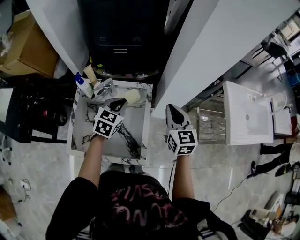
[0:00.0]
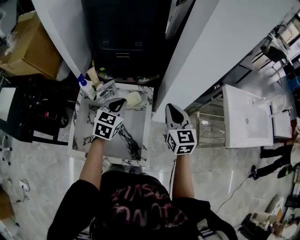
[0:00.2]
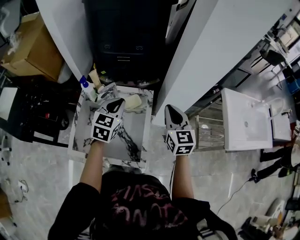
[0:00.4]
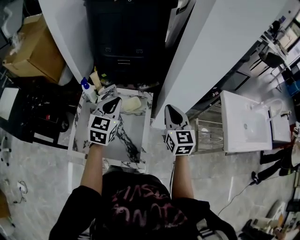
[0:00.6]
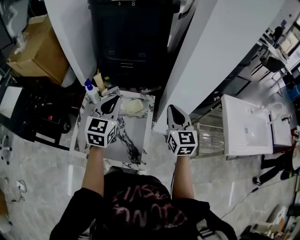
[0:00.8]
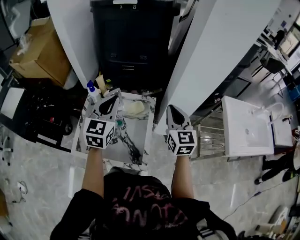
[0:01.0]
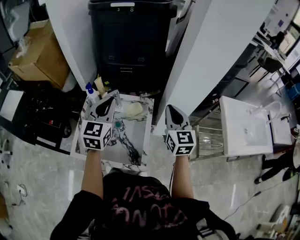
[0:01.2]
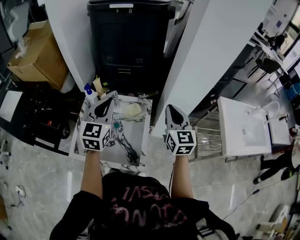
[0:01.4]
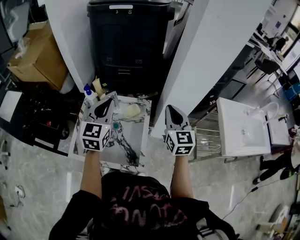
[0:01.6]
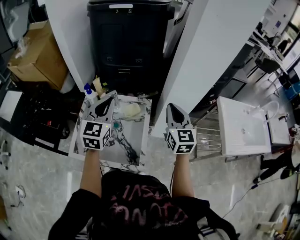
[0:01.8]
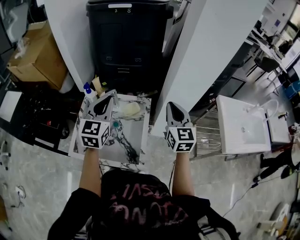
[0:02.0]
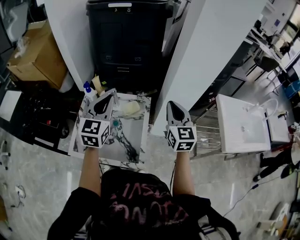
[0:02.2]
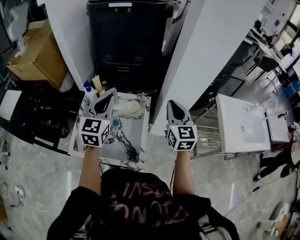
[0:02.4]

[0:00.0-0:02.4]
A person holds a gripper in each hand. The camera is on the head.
0:00.0 to 0:01.2: The left gripper travels upward by approximately 15 cm, and swivels some 30 degrees. The right gripper heads upward, covering approximately 10 cm.
0:01.2 to 0:02.4: There are only small adjustments of the grippers.

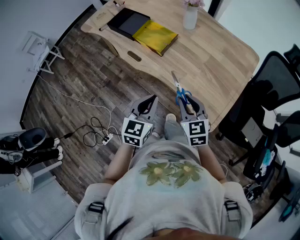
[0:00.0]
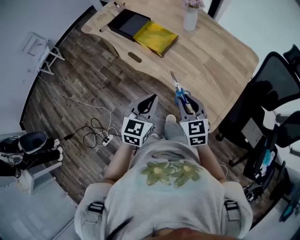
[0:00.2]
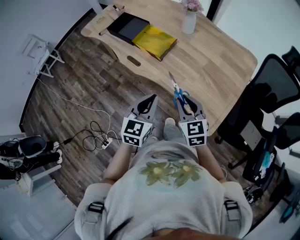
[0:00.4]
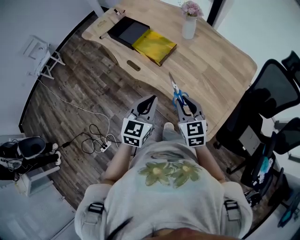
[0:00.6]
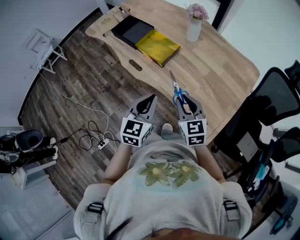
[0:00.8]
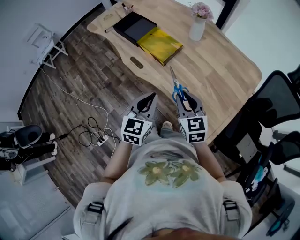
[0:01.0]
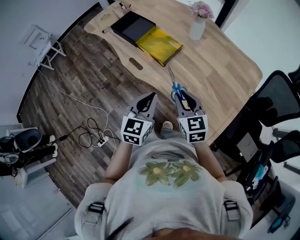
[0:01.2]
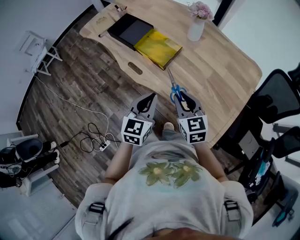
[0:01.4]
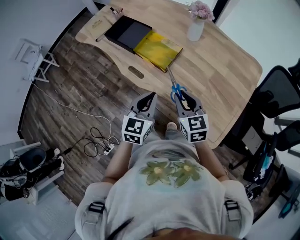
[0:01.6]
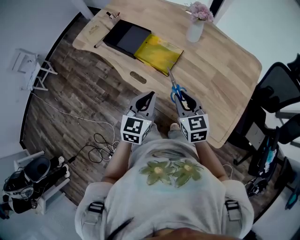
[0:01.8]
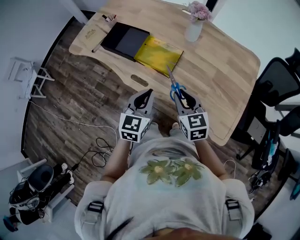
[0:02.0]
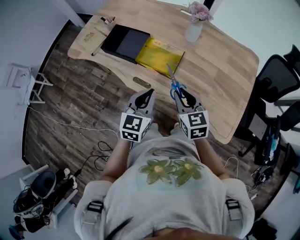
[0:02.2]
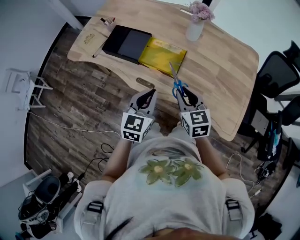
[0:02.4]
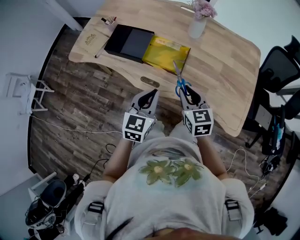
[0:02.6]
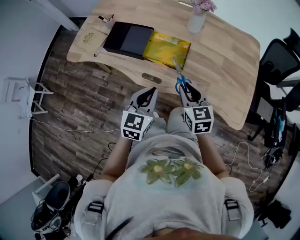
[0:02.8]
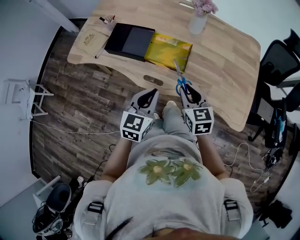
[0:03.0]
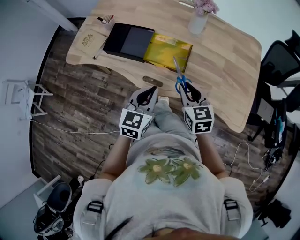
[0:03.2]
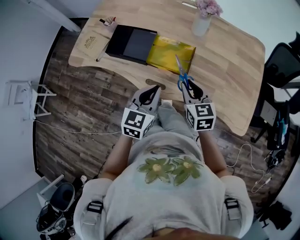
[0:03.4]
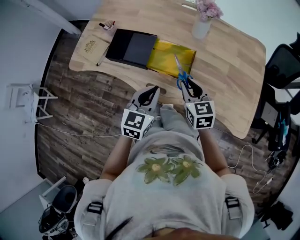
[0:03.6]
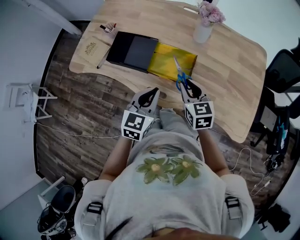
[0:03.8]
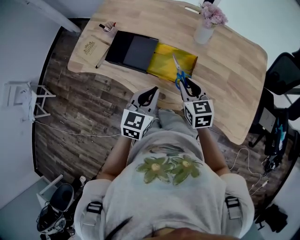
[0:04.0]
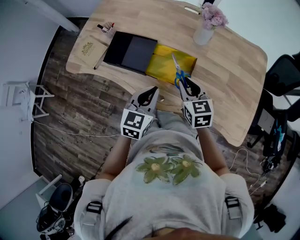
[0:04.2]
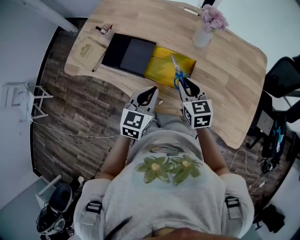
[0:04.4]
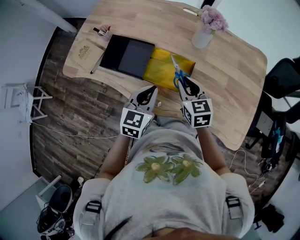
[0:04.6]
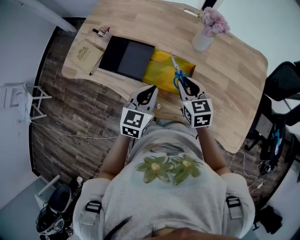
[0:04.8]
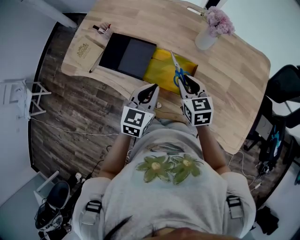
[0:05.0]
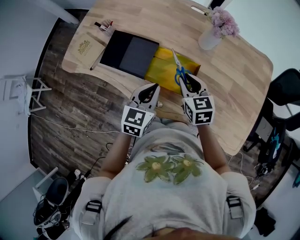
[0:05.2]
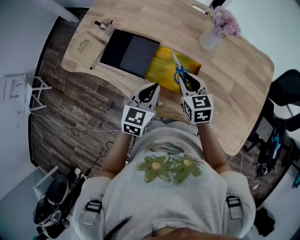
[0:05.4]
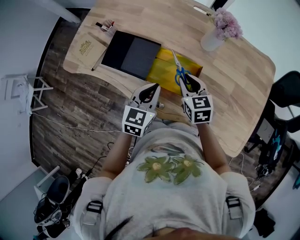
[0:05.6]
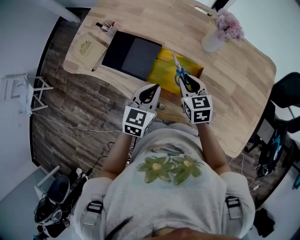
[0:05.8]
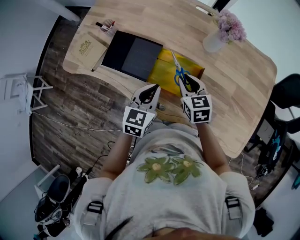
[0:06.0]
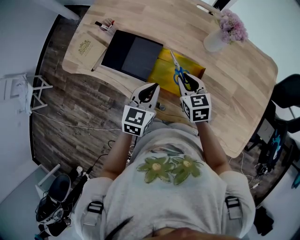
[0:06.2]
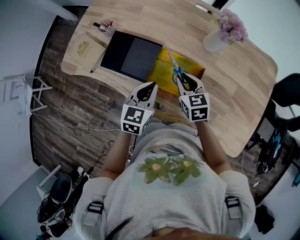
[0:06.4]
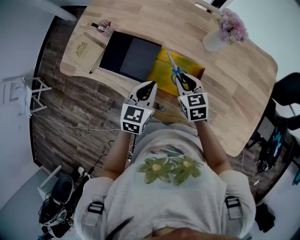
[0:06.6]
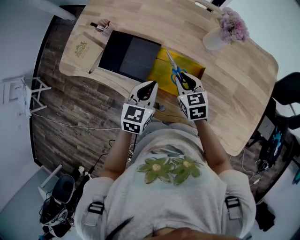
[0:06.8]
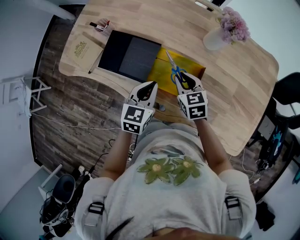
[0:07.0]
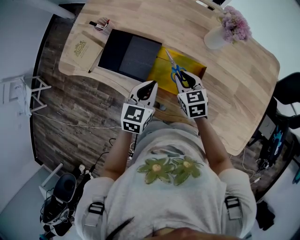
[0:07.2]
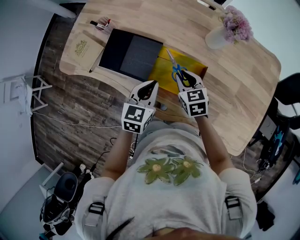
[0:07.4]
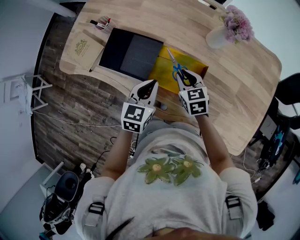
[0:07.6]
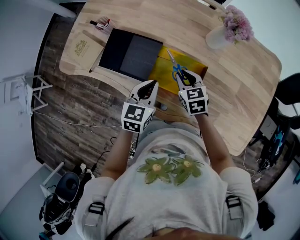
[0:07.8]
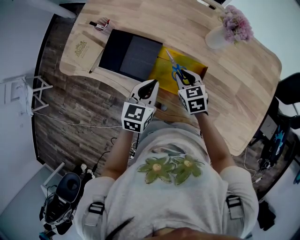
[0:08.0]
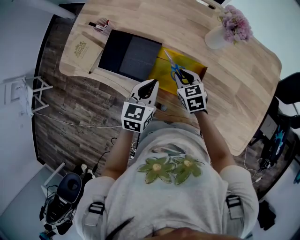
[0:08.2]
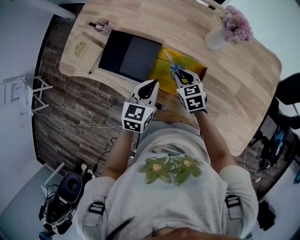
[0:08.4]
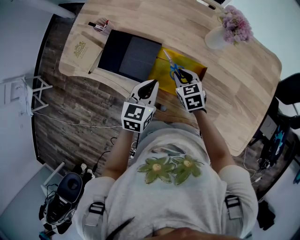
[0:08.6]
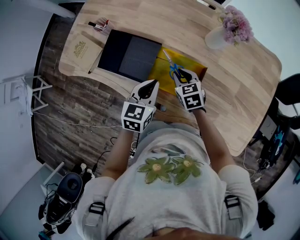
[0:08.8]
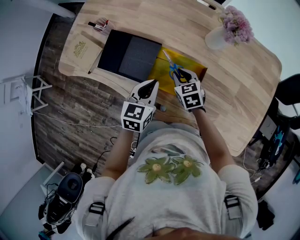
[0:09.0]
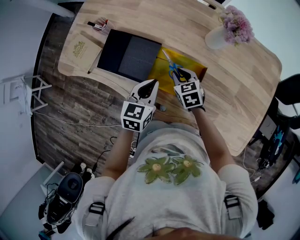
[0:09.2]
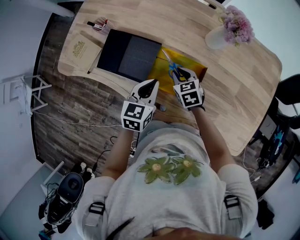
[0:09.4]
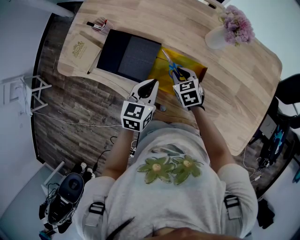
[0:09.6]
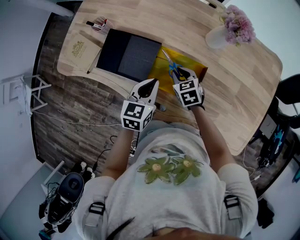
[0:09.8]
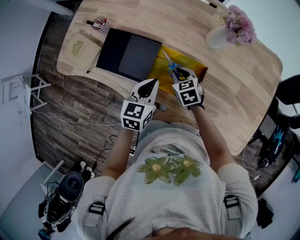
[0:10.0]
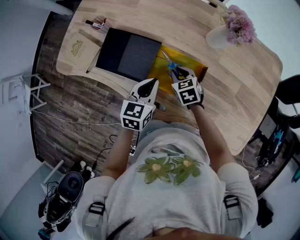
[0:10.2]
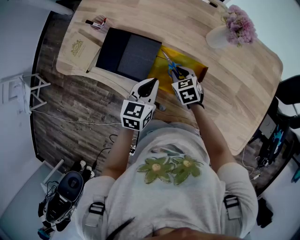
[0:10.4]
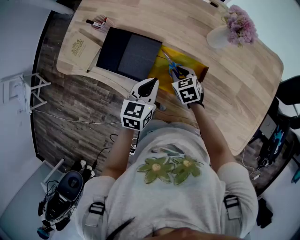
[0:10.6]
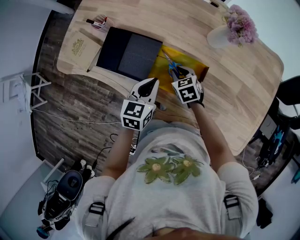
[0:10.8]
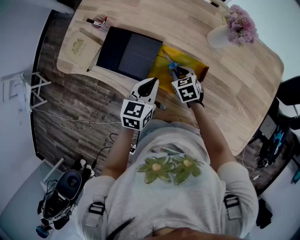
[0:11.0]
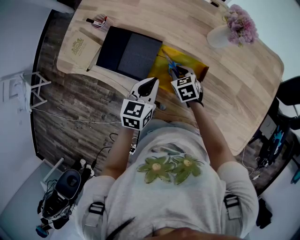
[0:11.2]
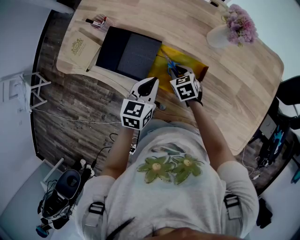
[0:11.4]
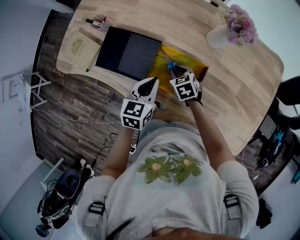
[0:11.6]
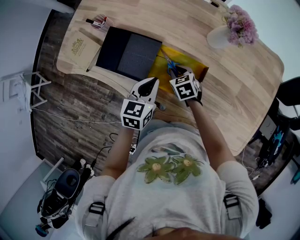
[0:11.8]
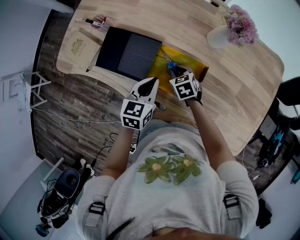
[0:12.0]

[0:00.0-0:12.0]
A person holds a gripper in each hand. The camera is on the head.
0:00.0 to 0:01.6: The right gripper moves forward and to the left, about 15 cm, while the left gripper is displaced forward by approximately 15 cm.
0:01.6 to 0:03.0: Both grippers travel together to the left, approximately 15 cm. The right gripper turns by about 20 degrees; the left gripper rotates roughly 20 degrees.
0:03.0 to 0:04.4: Both grippers travel together forward, roughly 15 cm.
0:04.4 to 0:06.0: The left gripper shifts some 5 cm forward. Meanwhile the right gripper is displaced forward and downward by approximately 10 cm.
0:06.0 to 0:07.6: The right gripper moves downward, roughly 5 cm.
0:07.6 to 0:09.0: There are only small adjustments of the grippers.
0:09.0 to 0:12.0: The grippers stay close to where they were, moving slightly.

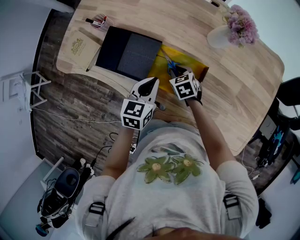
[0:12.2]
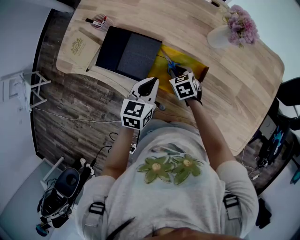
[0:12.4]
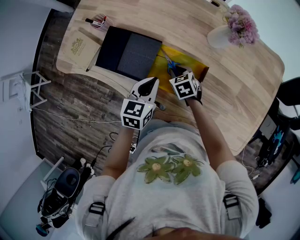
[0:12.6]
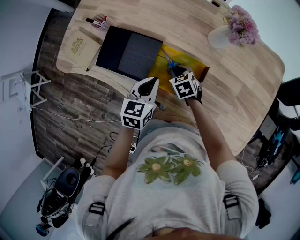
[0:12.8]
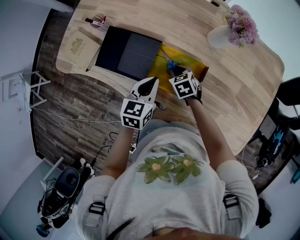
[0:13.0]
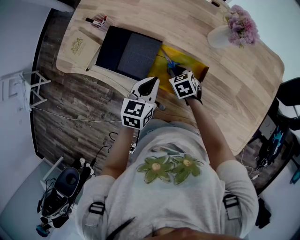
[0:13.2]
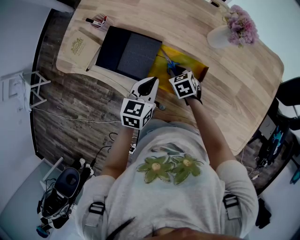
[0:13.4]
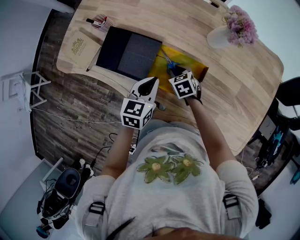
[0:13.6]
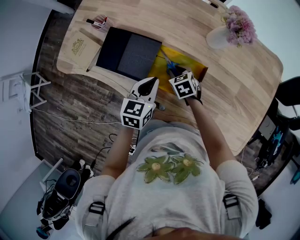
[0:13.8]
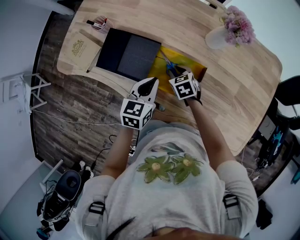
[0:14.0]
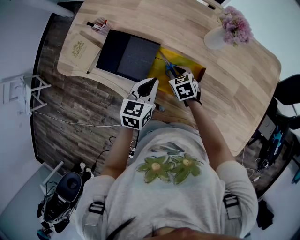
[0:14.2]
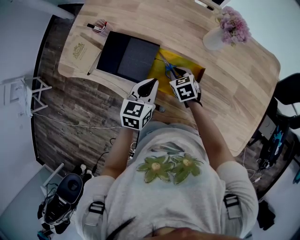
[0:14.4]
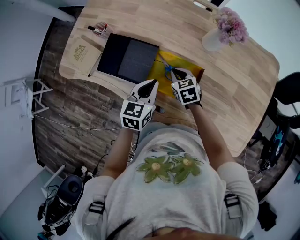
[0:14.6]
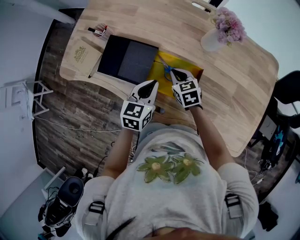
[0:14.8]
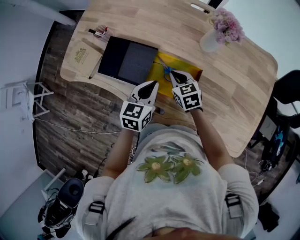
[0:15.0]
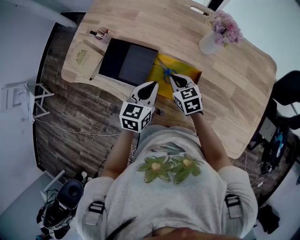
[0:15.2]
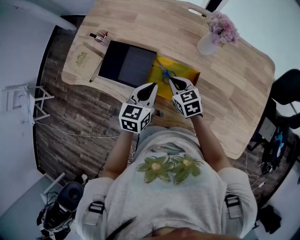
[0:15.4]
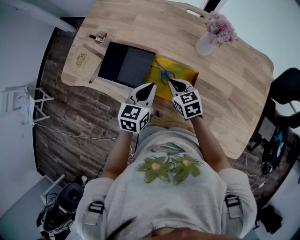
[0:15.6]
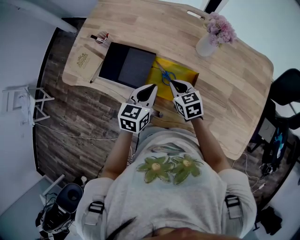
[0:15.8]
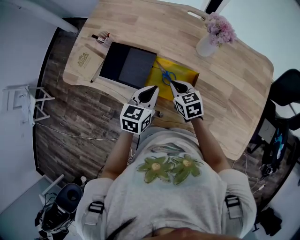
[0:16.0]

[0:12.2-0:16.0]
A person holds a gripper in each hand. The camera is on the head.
0:12.2 to 0:13.4: Neither gripper changes place.
0:13.4 to 0:14.8: The right gripper travels upward by approximately 10 cm.
0:14.8 to 0:16.0: The right gripper changes place by about 5 cm.

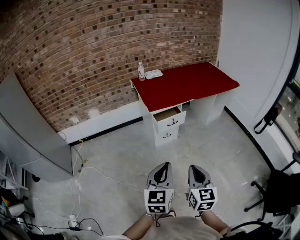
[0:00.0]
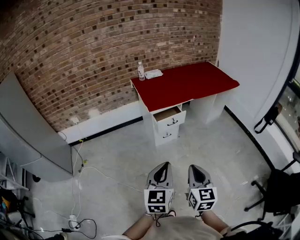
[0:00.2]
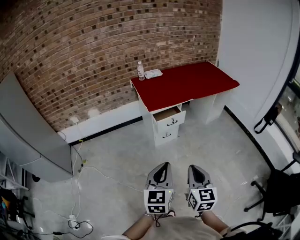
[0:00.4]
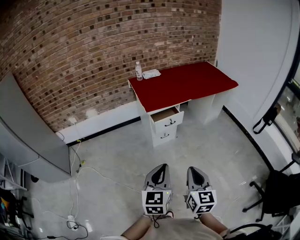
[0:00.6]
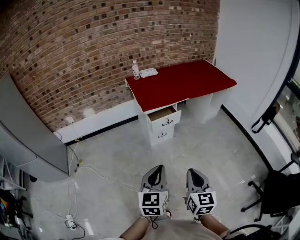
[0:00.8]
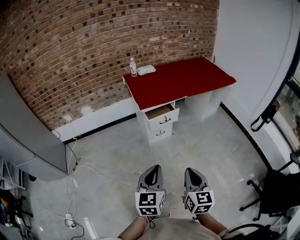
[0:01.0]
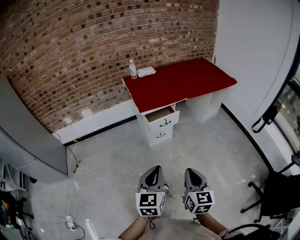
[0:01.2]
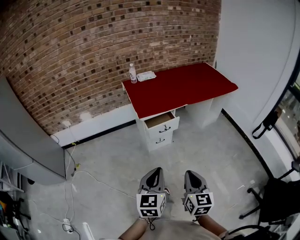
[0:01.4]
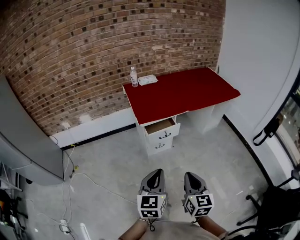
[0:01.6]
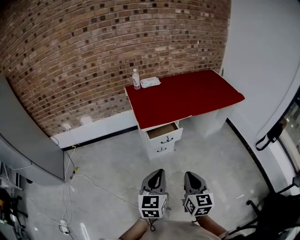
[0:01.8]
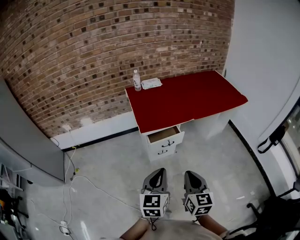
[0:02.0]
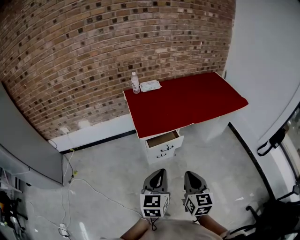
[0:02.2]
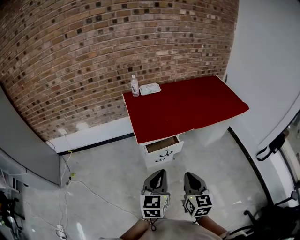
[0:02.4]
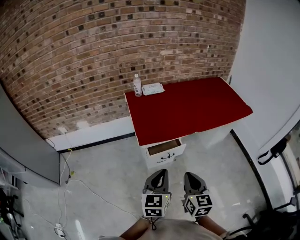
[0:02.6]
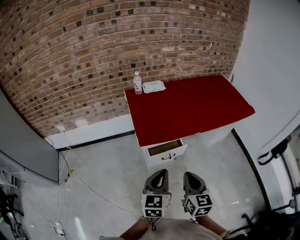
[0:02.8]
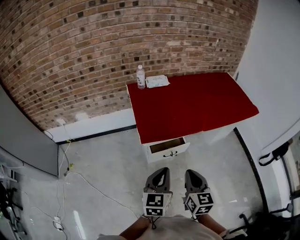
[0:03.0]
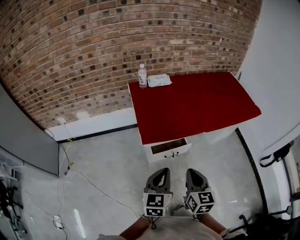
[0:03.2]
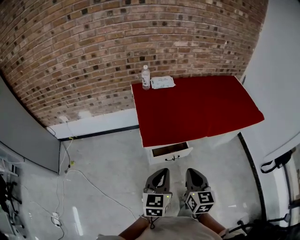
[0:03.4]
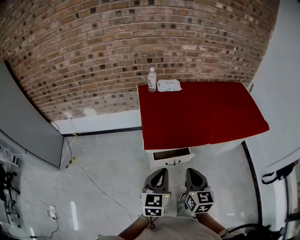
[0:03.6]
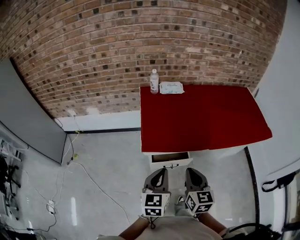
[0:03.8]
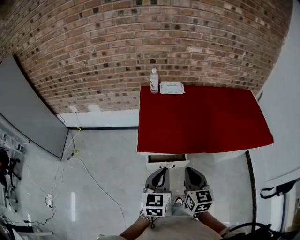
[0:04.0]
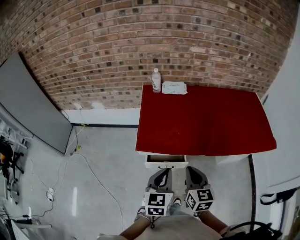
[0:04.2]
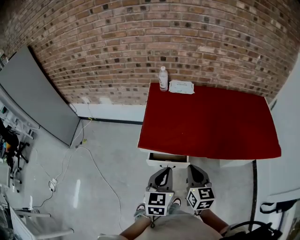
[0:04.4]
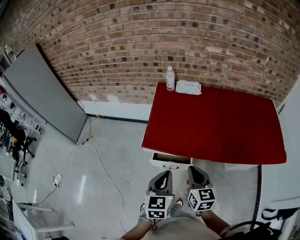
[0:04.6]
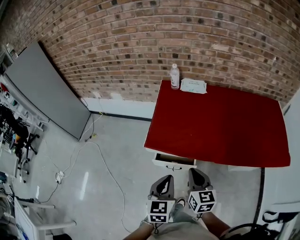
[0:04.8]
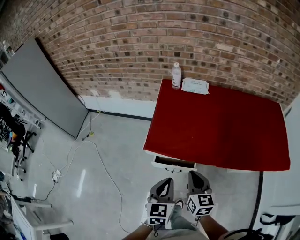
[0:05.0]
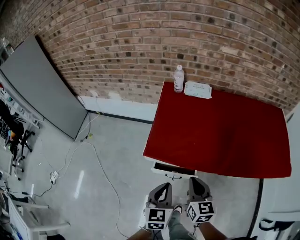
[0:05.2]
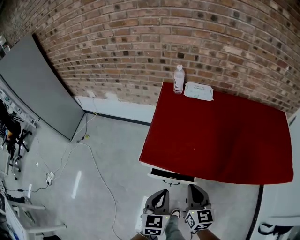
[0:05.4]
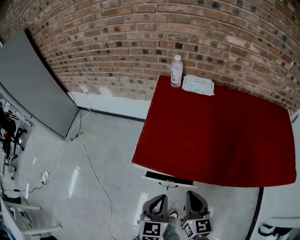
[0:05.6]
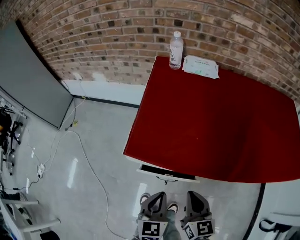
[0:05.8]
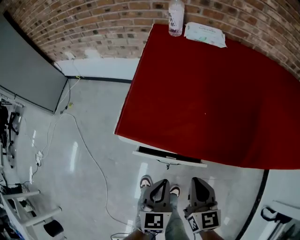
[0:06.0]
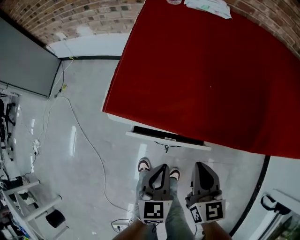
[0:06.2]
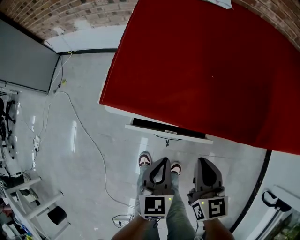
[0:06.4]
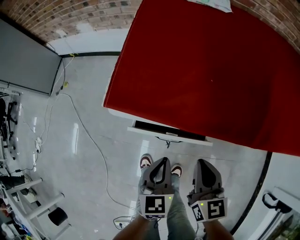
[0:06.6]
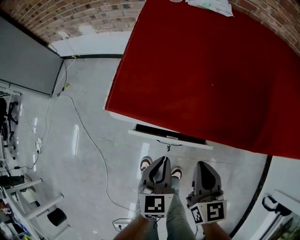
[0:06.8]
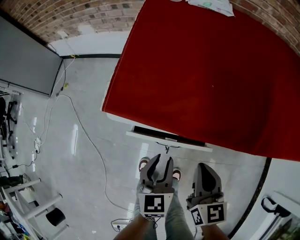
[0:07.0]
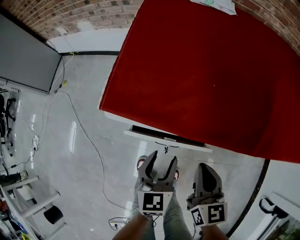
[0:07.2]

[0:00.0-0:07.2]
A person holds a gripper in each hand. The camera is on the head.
0:00.0 to 0:01.4: Both grippers travel together forward, some 5 cm.
0:01.4 to 0:02.8: Both grippers travel together forward, about 30 cm.
0:02.8 to 0:04.4: Both grippers move forward and to the right, some 20 cm. The left gripper swivels approximately 20 degrees; the right gripper rotates about 20 degrees.
0:04.4 to 0:05.8: The grippers both shift downward by approximately 20 cm.
0:05.8 to 0:07.2: The two grippers go roughly 10 cm downward. The left gripper opens.
